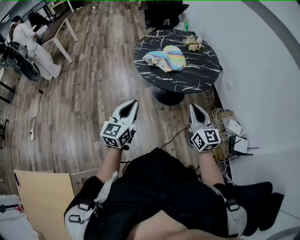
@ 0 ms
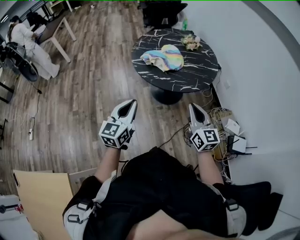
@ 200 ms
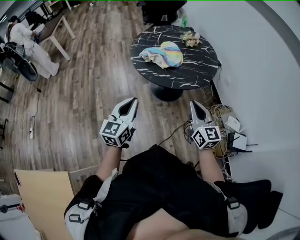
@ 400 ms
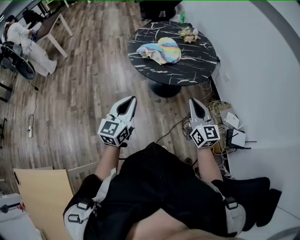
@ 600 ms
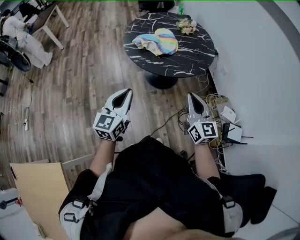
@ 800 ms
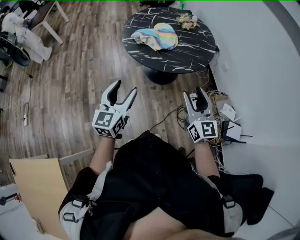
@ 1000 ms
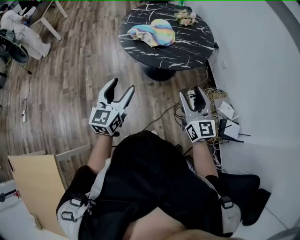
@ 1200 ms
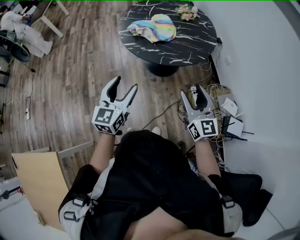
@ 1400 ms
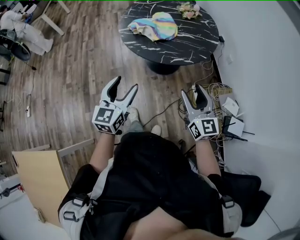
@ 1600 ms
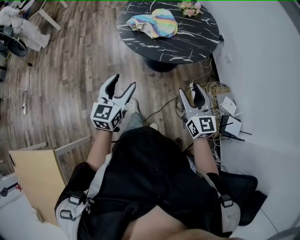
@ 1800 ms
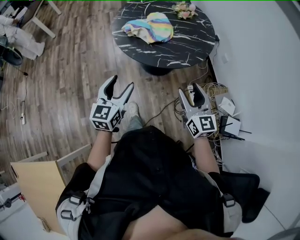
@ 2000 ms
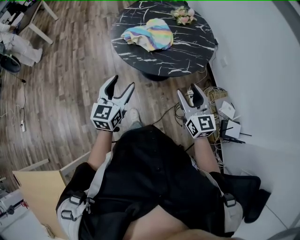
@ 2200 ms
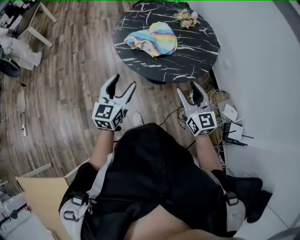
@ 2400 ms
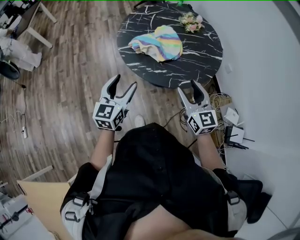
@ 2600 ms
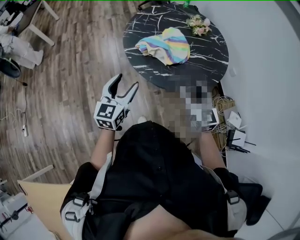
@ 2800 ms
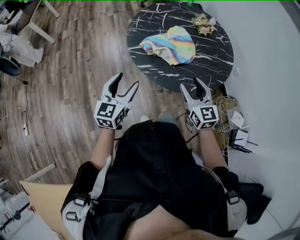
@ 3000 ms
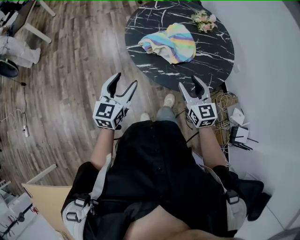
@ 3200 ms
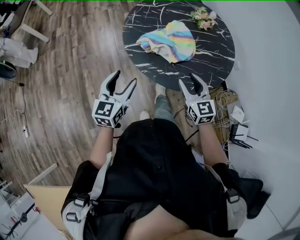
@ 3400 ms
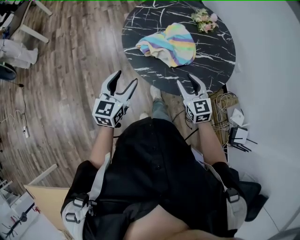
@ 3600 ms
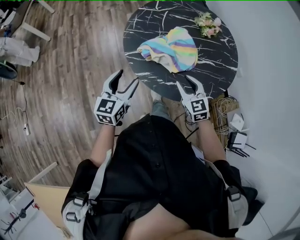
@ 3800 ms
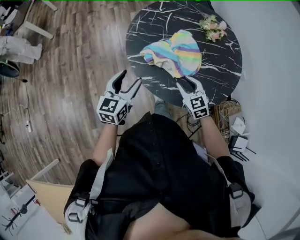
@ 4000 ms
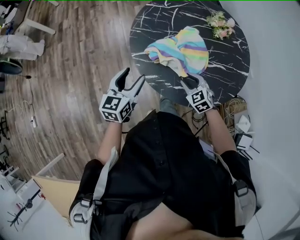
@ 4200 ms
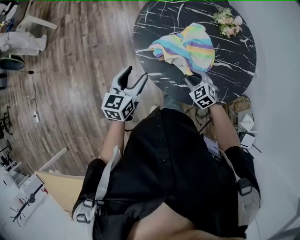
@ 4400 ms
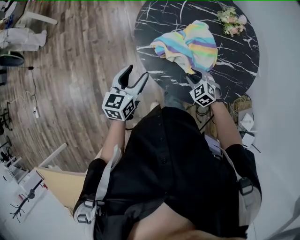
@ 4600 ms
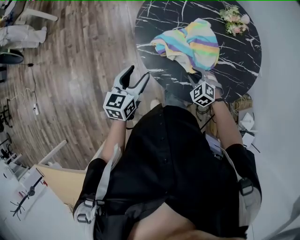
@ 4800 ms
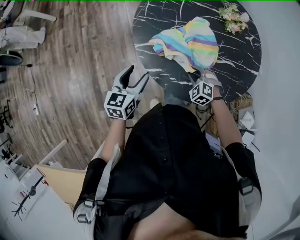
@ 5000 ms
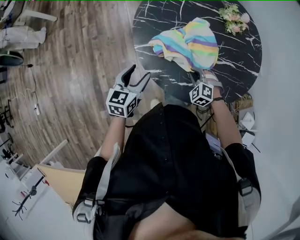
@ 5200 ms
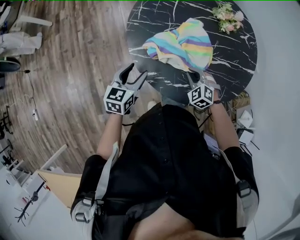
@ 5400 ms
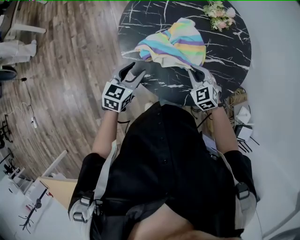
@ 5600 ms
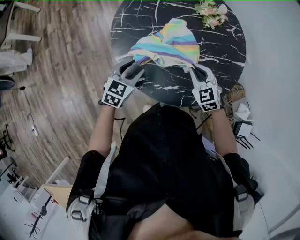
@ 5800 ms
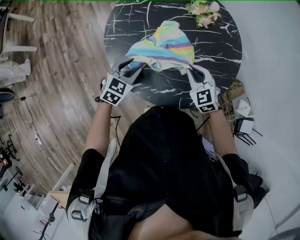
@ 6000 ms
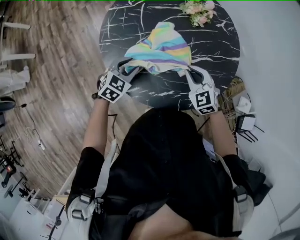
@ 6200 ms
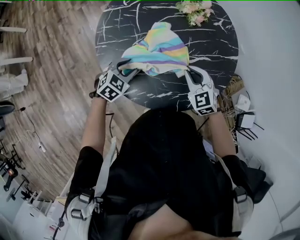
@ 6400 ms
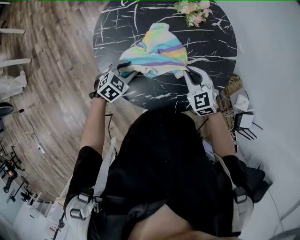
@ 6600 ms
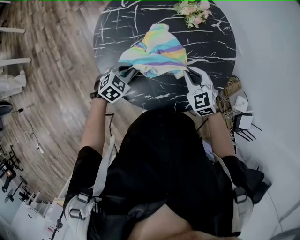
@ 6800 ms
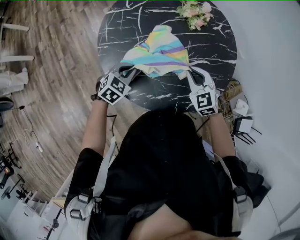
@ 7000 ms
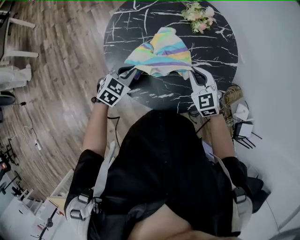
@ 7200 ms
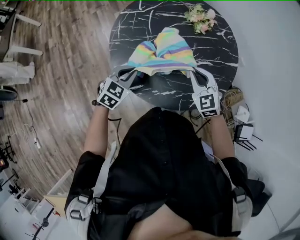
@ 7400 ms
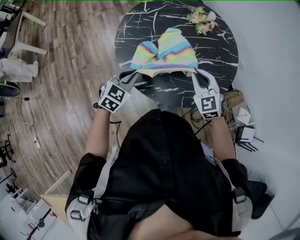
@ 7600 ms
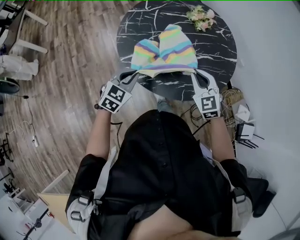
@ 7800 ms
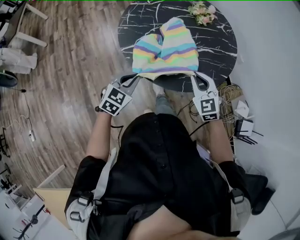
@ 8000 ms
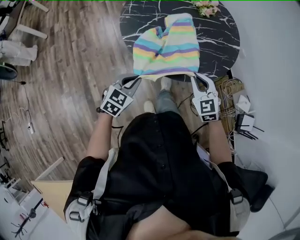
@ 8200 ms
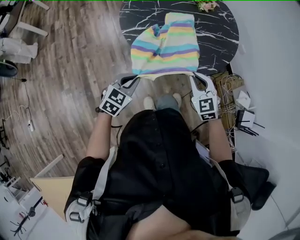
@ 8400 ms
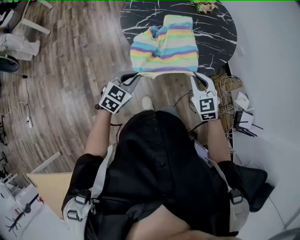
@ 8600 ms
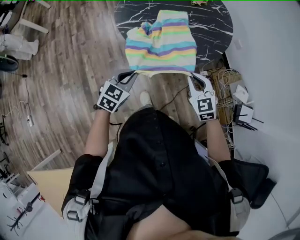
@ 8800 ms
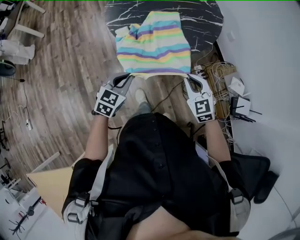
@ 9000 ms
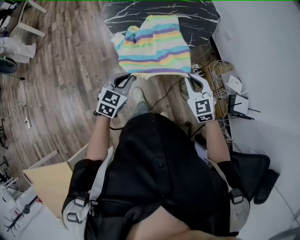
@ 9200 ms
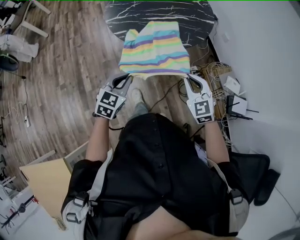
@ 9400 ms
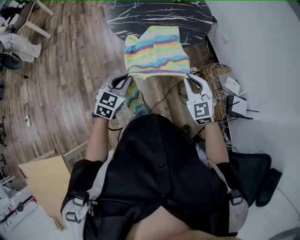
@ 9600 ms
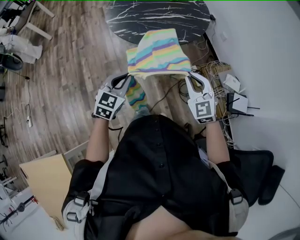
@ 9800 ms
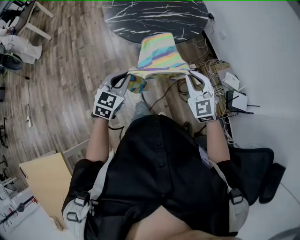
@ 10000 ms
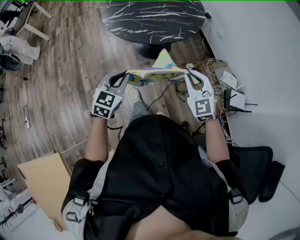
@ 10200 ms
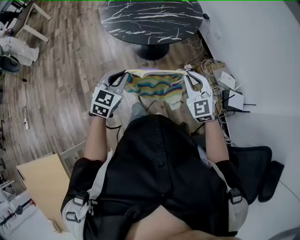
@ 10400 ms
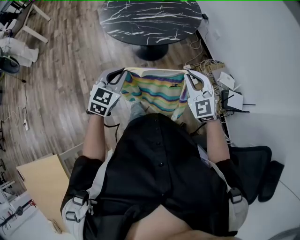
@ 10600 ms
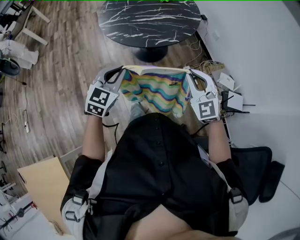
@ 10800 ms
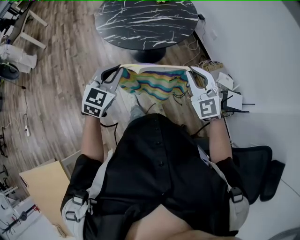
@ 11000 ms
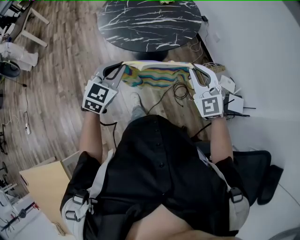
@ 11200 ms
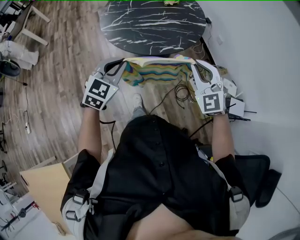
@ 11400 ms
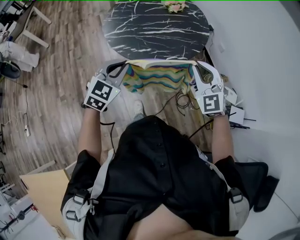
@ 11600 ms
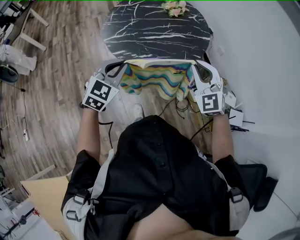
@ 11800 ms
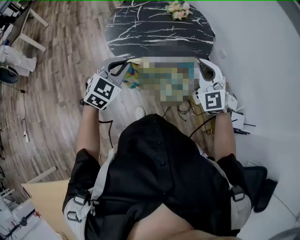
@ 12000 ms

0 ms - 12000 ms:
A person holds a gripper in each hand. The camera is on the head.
0 ms - 1600 ms: The grippers both shift to the right by approximately 10 cm. The left gripper opens up. The right gripper opens up.
1600 ms - 3000 ms: Both grippers travel together forward and to the left, some 30 cm.
3000 ms - 4400 ms: The right gripper moves downward and forward, roughly 25 cm, and points its fingers about 40 degrees further downward; the left gripper is displaced forward and downward by about 15 cm.
4400 ms - 6000 ms: The left gripper goes roughly 15 cm to the right, forward and downward, and turns by approximately 40 degrees; the right gripper travels to the right, upward and forward by about 15 cm, turns by roughly 20 degrees, and closes its fingers.
6000 ms - 7600 ms: The left gripper heads backward and upward, covering approximately 10 cm, and closes. Meanwhile the right gripper moves upward, roughly 10 cm.
7600 ms - 9000 ms: Both grippers move backward, about 30 cm.
9000 ms - 10400 ms: The grippers both shift backward, to the right and upward by roughly 15 cm.
10400 ms - 12000 ms: The grippers both shift forward by approximately 20 cm.

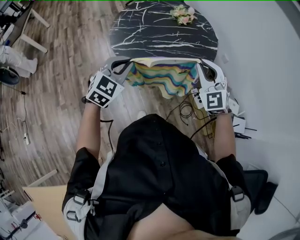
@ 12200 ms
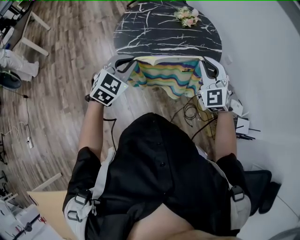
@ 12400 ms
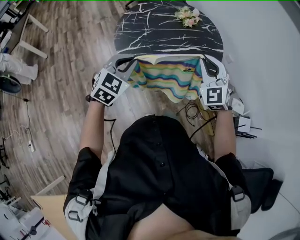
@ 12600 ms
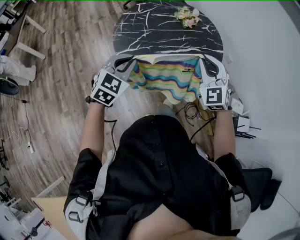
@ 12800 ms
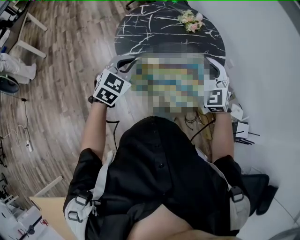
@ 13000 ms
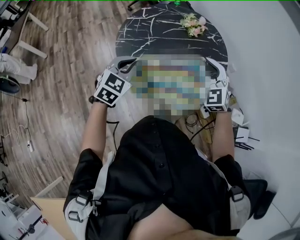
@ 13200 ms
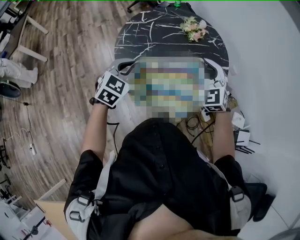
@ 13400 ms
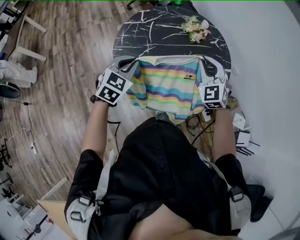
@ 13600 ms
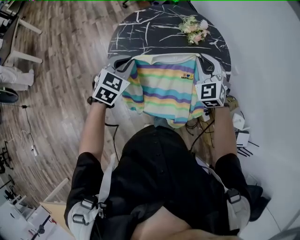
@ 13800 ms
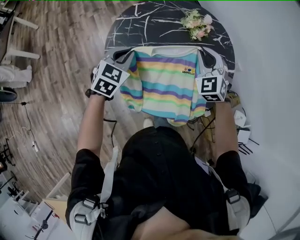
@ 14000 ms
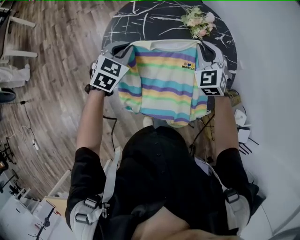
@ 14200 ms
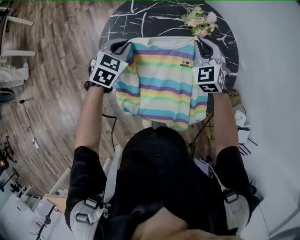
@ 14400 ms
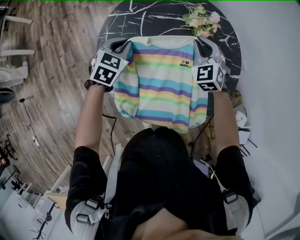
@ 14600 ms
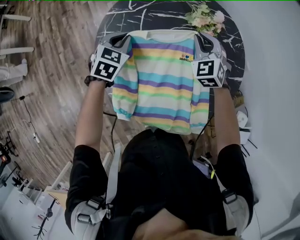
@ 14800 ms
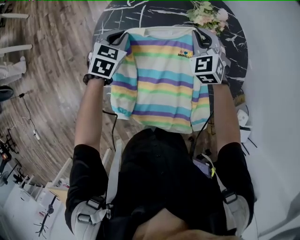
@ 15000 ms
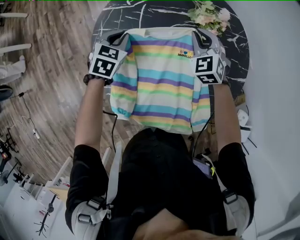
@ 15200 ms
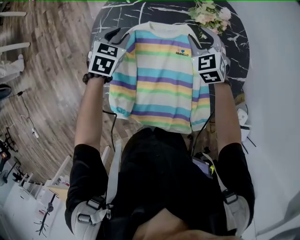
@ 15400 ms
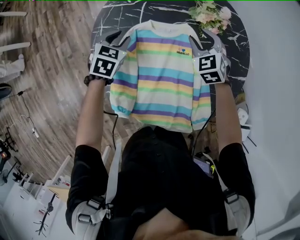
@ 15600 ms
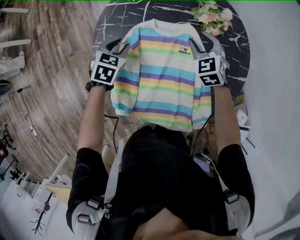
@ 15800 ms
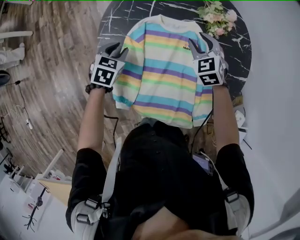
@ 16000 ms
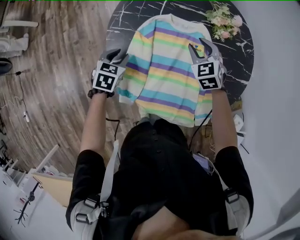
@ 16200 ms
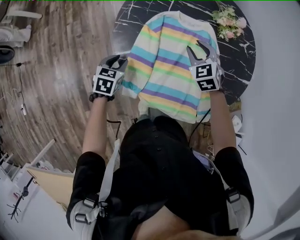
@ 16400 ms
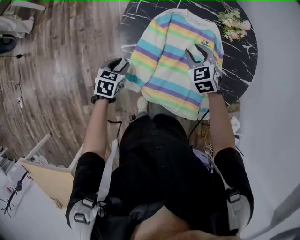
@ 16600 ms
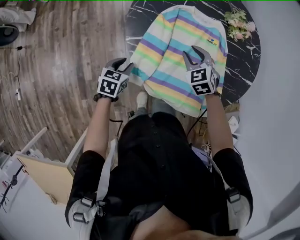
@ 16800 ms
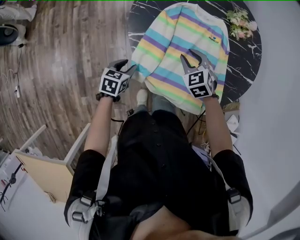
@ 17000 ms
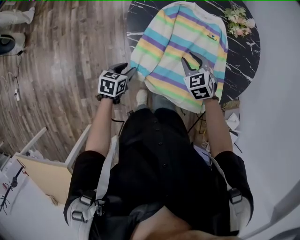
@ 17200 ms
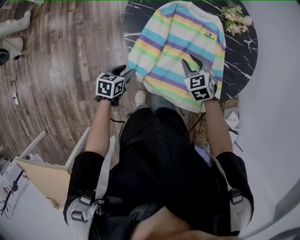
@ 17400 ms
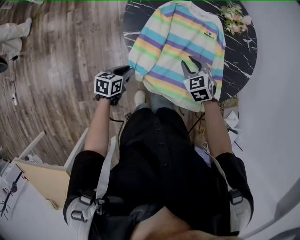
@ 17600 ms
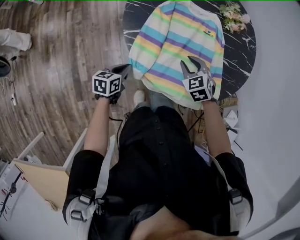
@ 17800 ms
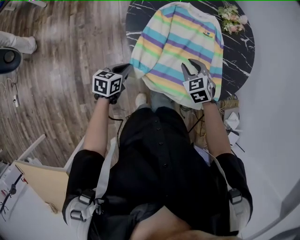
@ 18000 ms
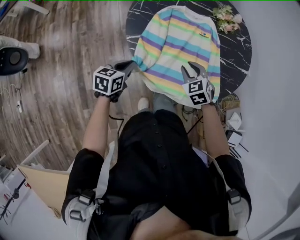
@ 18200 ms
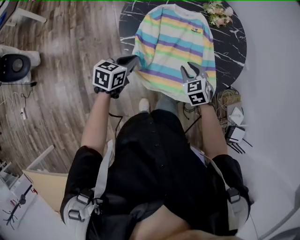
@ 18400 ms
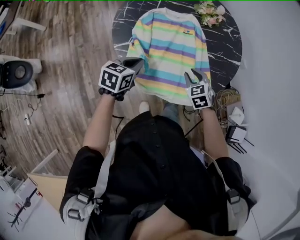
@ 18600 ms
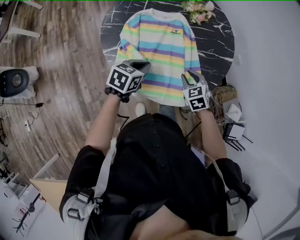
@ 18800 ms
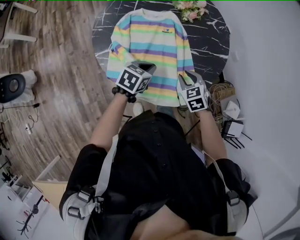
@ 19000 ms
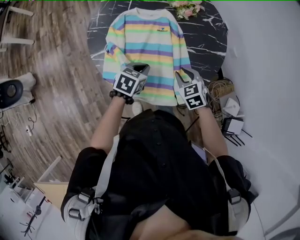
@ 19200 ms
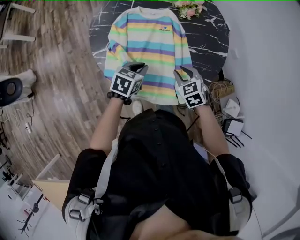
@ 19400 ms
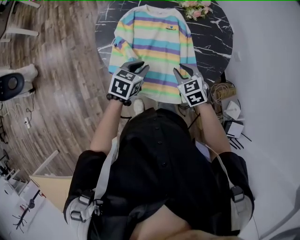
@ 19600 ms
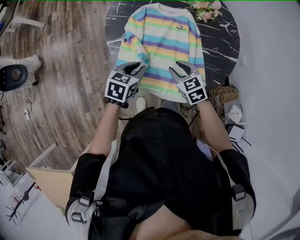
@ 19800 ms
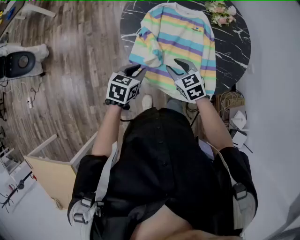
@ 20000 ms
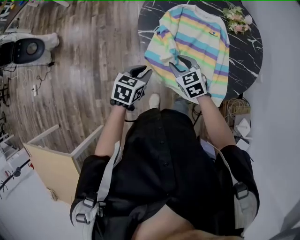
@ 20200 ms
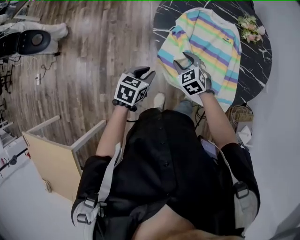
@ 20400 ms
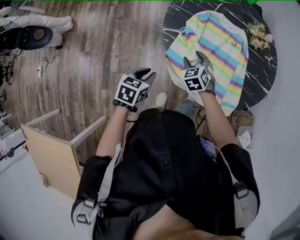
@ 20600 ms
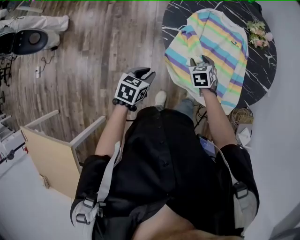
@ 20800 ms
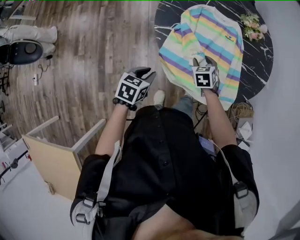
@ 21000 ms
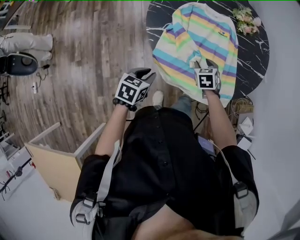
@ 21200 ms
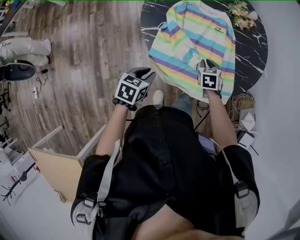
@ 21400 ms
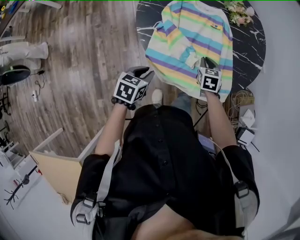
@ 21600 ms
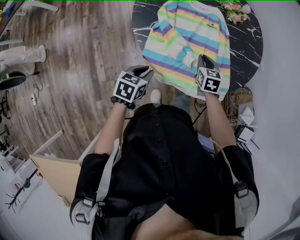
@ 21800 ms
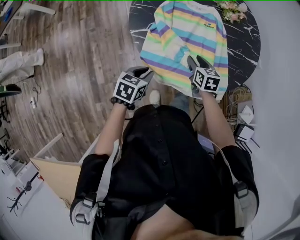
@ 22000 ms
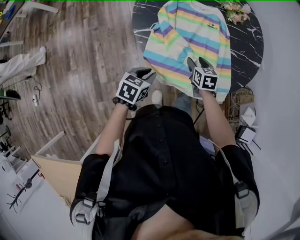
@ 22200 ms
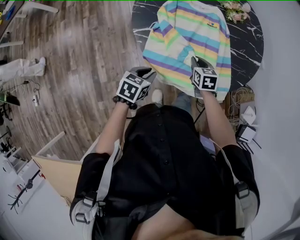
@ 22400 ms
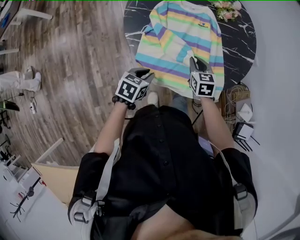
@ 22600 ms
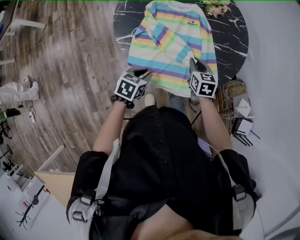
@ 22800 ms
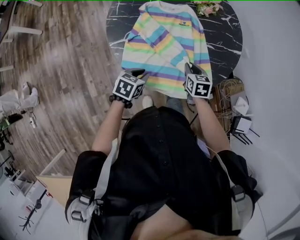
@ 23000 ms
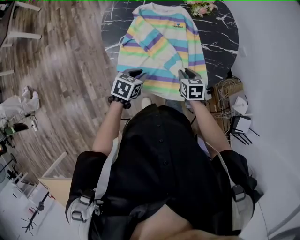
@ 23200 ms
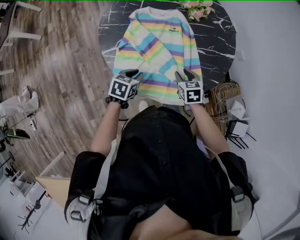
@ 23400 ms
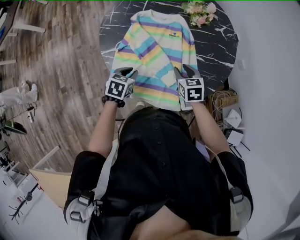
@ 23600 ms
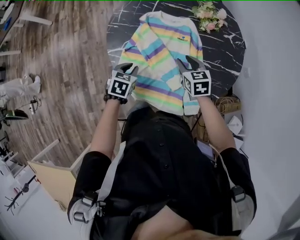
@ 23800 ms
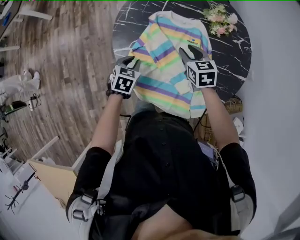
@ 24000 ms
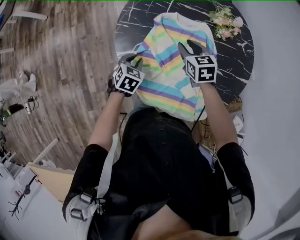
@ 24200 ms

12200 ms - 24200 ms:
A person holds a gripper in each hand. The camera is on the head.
12200 ms - 13800 ms: Both grippers travel together forward, about 25 cm.
13800 ms - 15200 ms: The two grippers go approximately 25 cm forward and downward.
15200 ms - 16600 ms: The left gripper travels backward by some 30 cm, changes its angle by roughly 30 degrees, and opens. The right gripper goes approximately 20 cm backward and to the left, and opens.
16600 ms - 18200 ms: The left gripper goes approximately 5 cm backward, and closes up. Meanwhile the right gripper travels backward by about 15 cm.
18200 ms - 19800 ms: The right gripper travels to the right by approximately 5 cm; the left gripper heads to the right, covering roughly 15 cm.
19800 ms - 21200 ms: The left gripper is displaced to the left and backward by about 15 cm, while the right gripper heads downward, covering some 10 cm, reaches about 15 cm to the left, then returns, and rotates approximately 20 degrees.
21200 ms - 22600 ms: The right gripper moves upward, about 5 cm, turns by about 20 degrees, and closes up. Meanwhile the left gripper is displaced to the right by approximately 5 cm.
22600 ms - 24200 ms: The left gripper changes place by roughly 20 cm, and rotates about 20 degrees. Meanwhile the right gripper moves about 20 cm, and opens its fingers.
